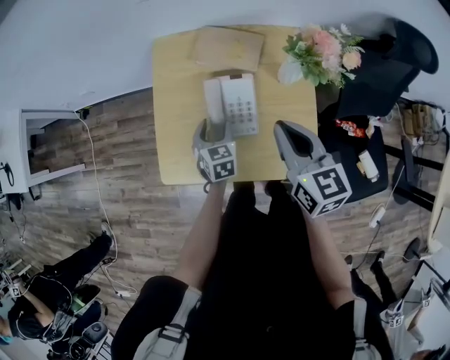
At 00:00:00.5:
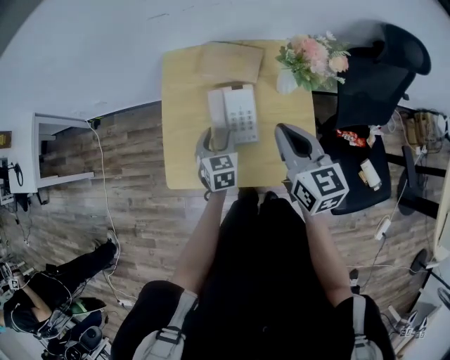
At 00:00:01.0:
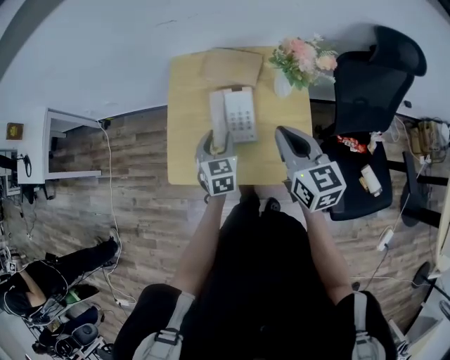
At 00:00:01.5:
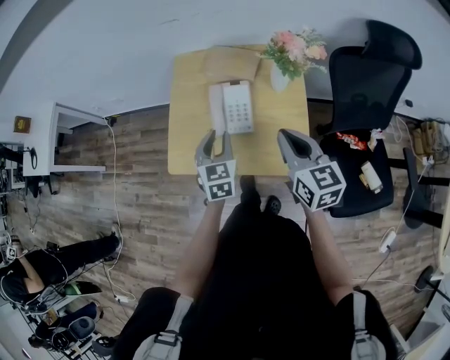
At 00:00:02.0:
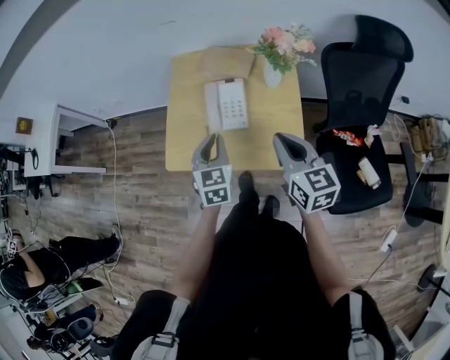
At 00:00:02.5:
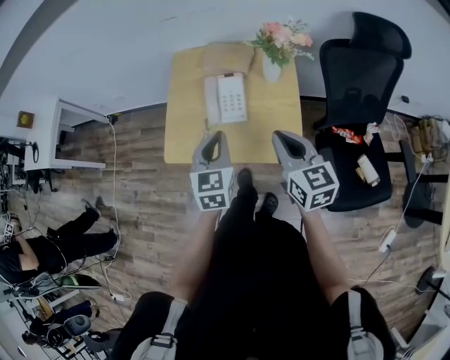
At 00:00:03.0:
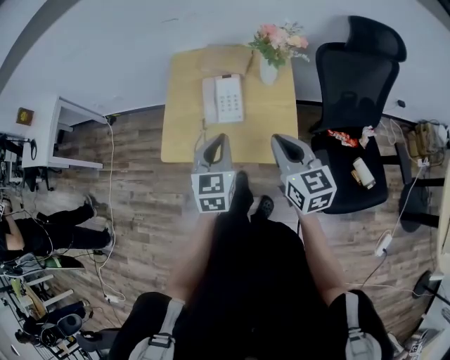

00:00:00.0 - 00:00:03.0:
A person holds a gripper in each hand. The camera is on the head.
00:00:00.0 - 00:00:01.5: The right gripper moves backward, some 10 cm. The left gripper moves upward and backward, some 20 cm, and closes its fingers.
00:00:01.5 - 00:00:03.0: The right gripper moves backward, roughly 10 cm. Meanwhile the left gripper is displaced backward and upward by about 15 cm, and closes its fingers.

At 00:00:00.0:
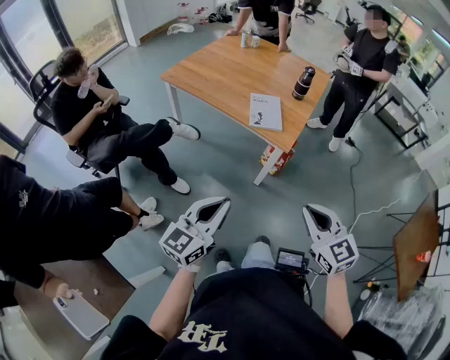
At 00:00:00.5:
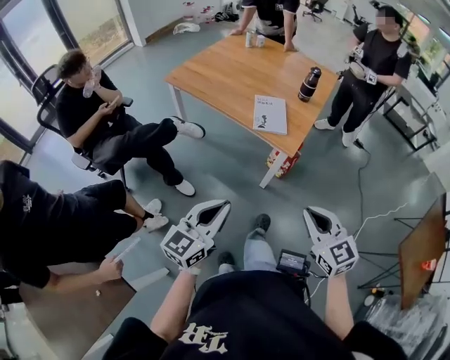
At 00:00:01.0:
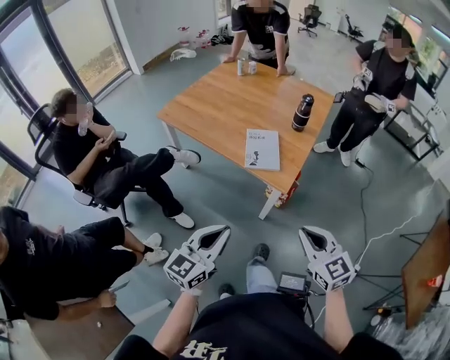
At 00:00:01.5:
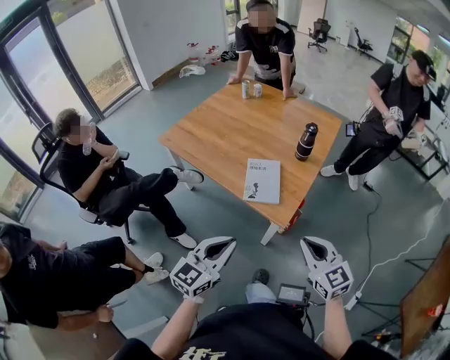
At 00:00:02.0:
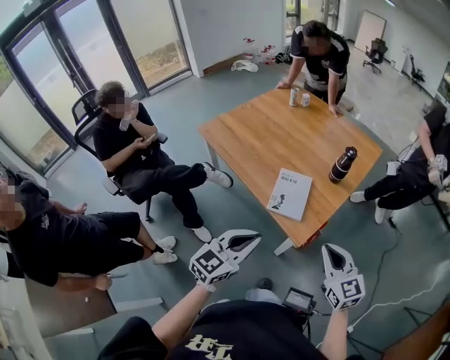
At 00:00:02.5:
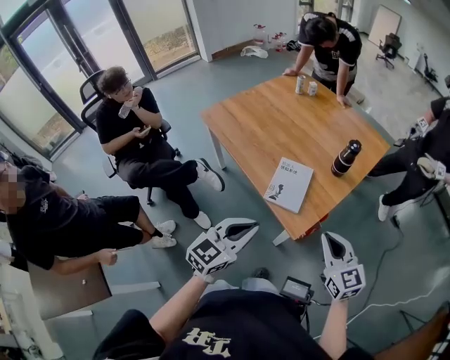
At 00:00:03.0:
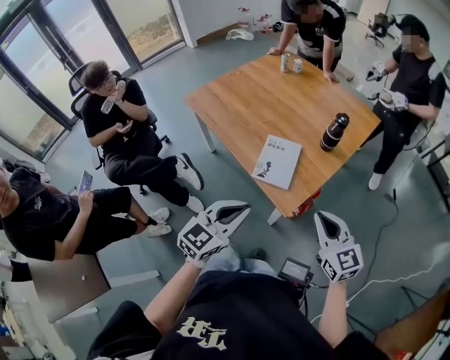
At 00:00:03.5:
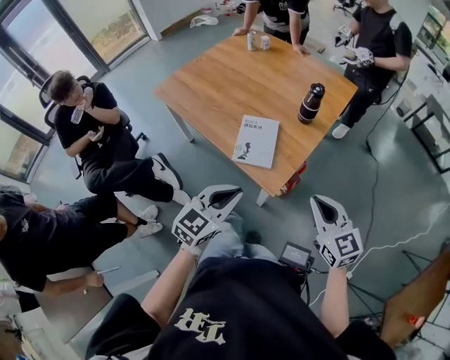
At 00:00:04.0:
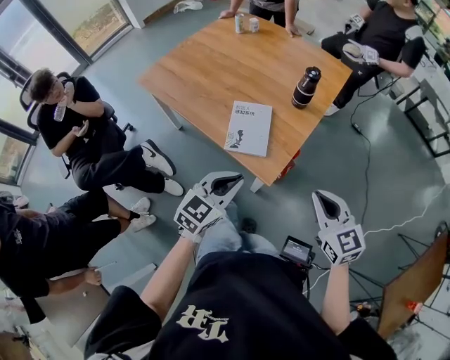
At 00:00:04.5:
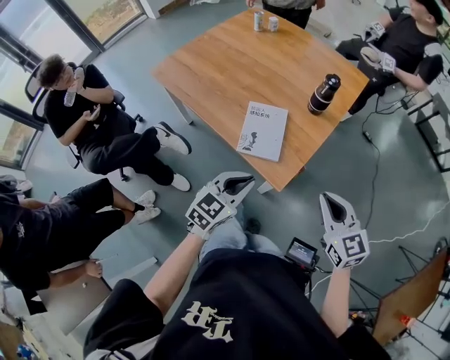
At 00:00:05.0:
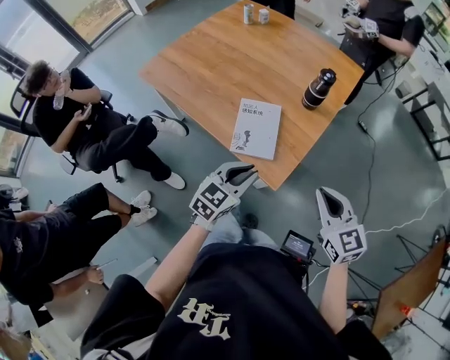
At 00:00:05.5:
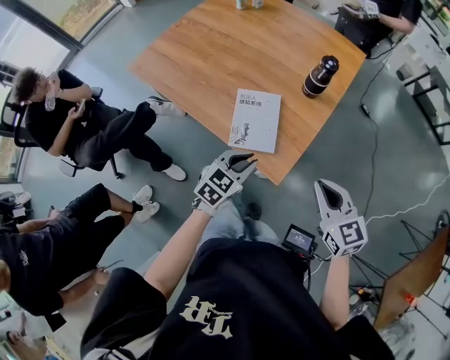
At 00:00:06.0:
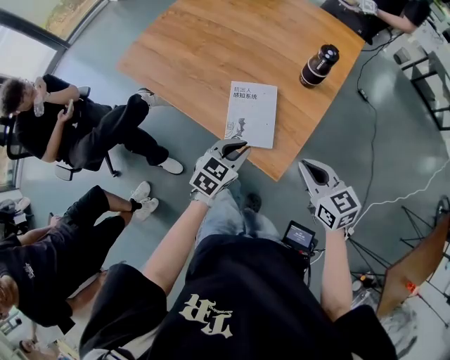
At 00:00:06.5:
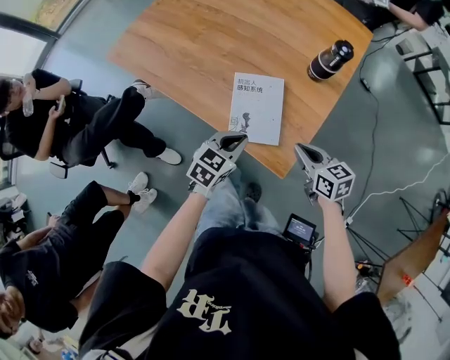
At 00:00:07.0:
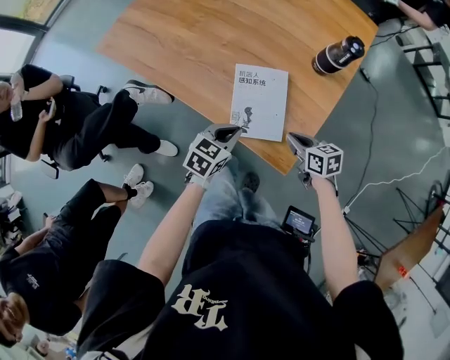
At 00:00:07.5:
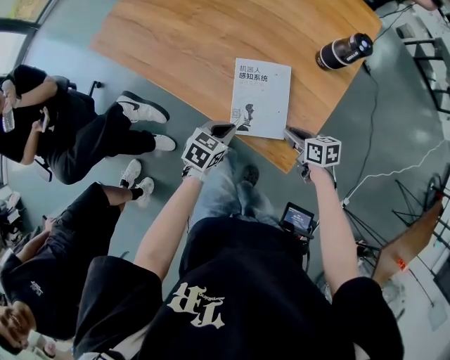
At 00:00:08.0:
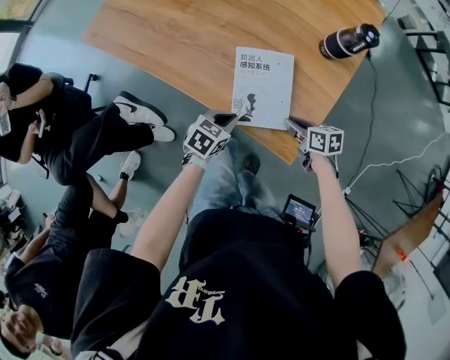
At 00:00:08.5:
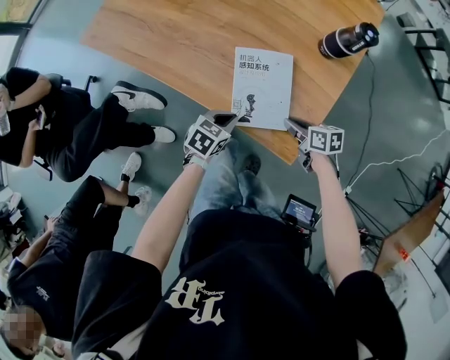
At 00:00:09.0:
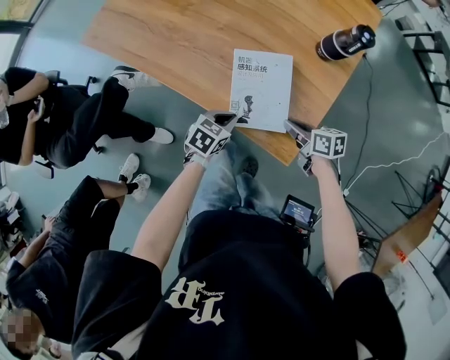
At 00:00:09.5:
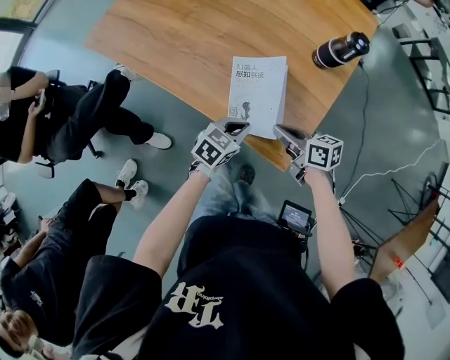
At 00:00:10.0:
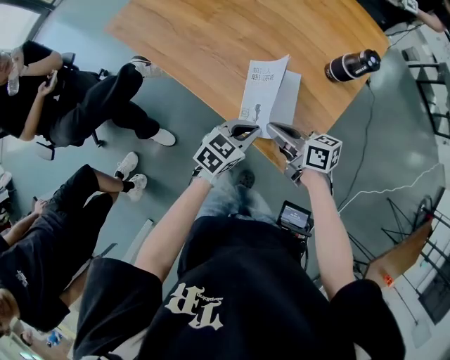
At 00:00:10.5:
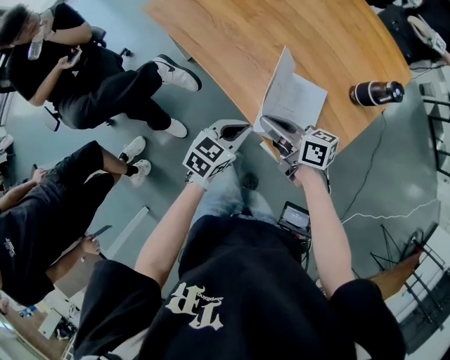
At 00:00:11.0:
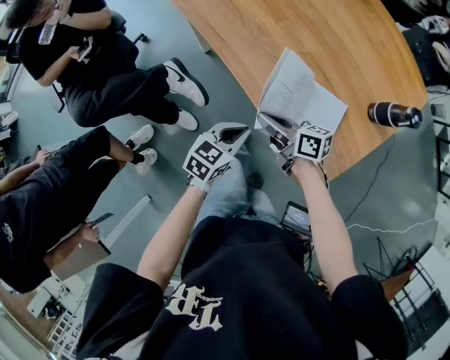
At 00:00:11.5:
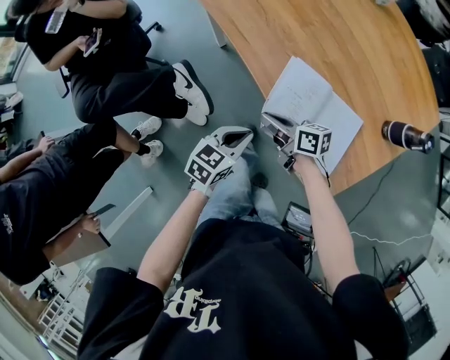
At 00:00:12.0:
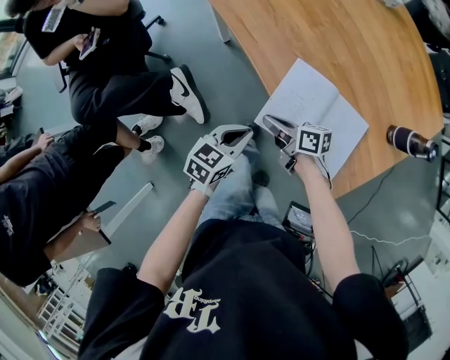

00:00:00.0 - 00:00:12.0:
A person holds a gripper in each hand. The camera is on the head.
00:00:00.0 - 00:00:02.0: The left gripper moves forward and to the right, about 30 cm. Meanwhile the right gripper goes about 35 cm forward.
00:00:02.0 - 00:00:04.0: The left gripper heads downward, to the right and forward, covering about 15 cm. The right gripper heads to the right, covering about 5 cm.
00:00:04.0 - 00:00:06.0: The left gripper is displaced forward and downward by about 20 cm, while the right gripper heads forward, downward and to the left, covering some 15 cm.
00:00:06.0 - 00:00:08.0: The right gripper is displaced downward by some 25 cm, and turns by some 40 degrees. Meanwhile the left gripper travels downward and to the left by approximately 20 cm, and turns by some 20 degrees.
00:00:08.0 - 00:00:10.0: The right gripper travels upward and to the left by some 20 cm, and rotates approximately 30 degrees; the left gripper goes some 10 cm upward.
00:00:10.0 - 00:00:12.0: The right gripper travels to the left and downward by approximately 25 cm, and swivels roughly 20 degrees. The left gripper heads to the left, covering about 20 cm, and swivels about 30 degrees.

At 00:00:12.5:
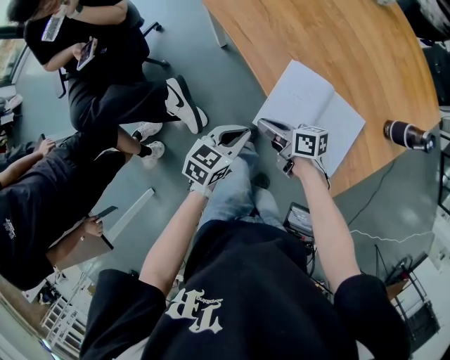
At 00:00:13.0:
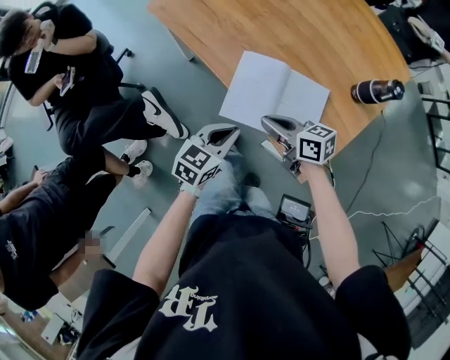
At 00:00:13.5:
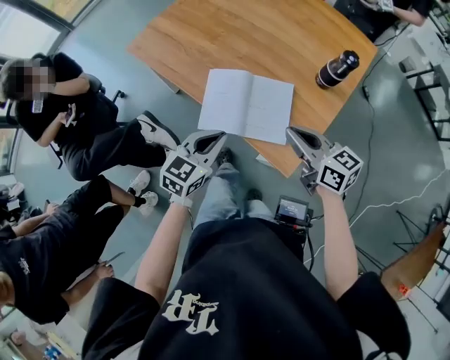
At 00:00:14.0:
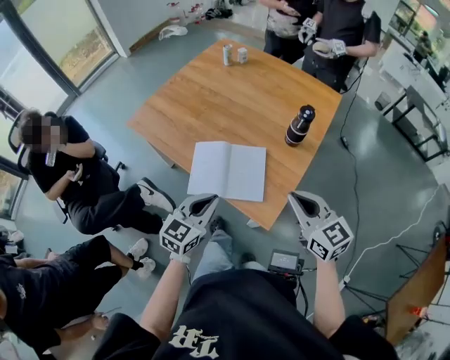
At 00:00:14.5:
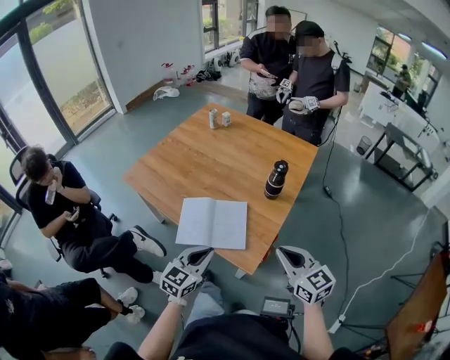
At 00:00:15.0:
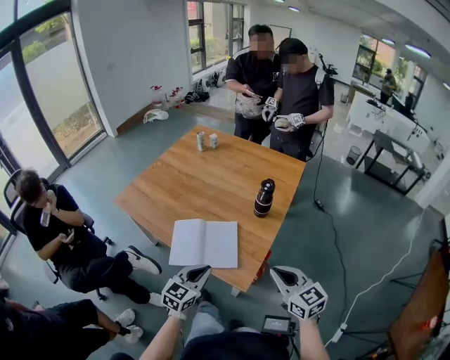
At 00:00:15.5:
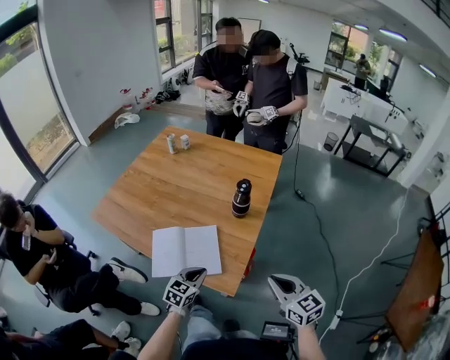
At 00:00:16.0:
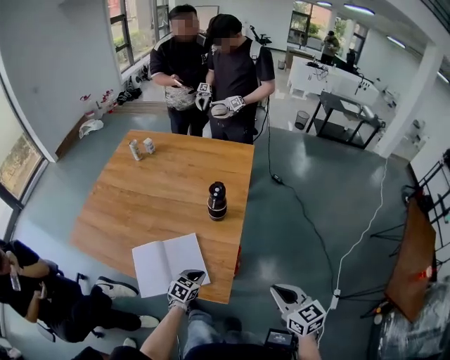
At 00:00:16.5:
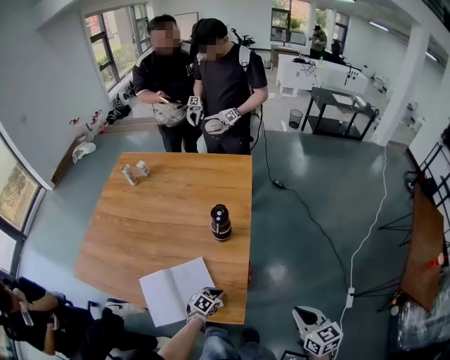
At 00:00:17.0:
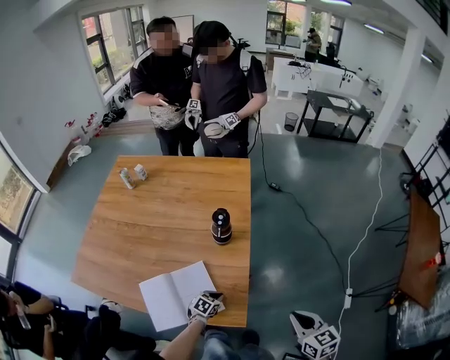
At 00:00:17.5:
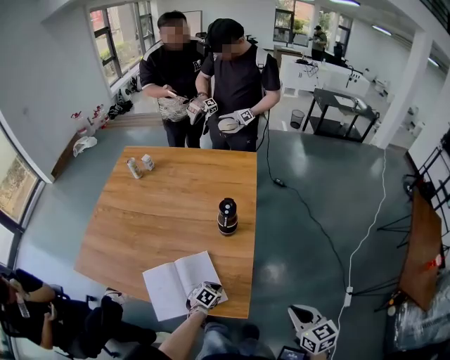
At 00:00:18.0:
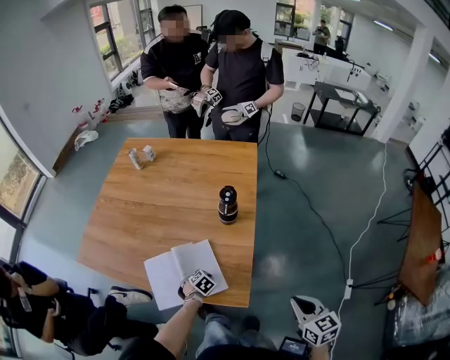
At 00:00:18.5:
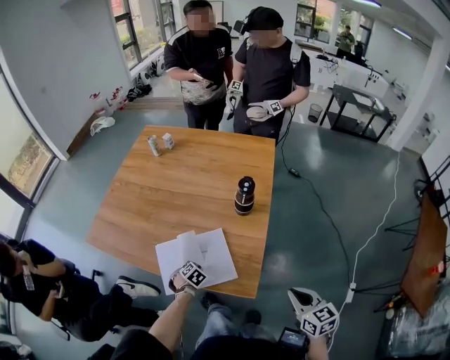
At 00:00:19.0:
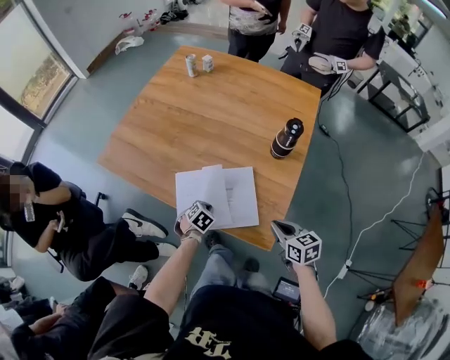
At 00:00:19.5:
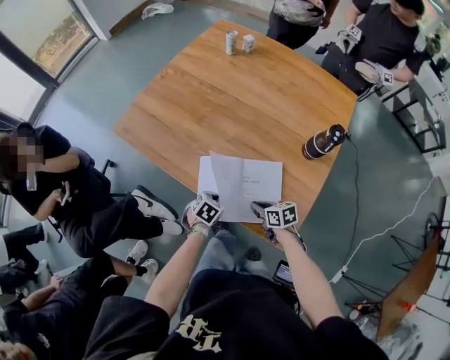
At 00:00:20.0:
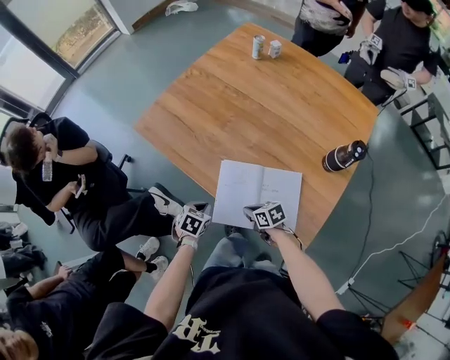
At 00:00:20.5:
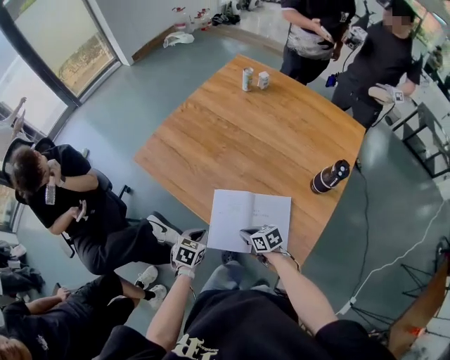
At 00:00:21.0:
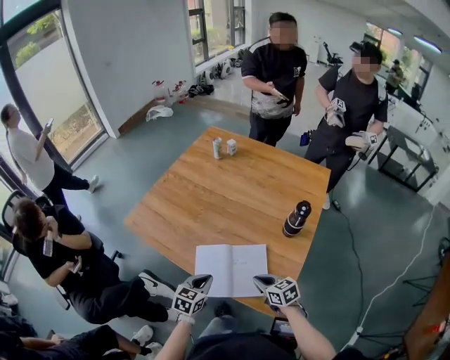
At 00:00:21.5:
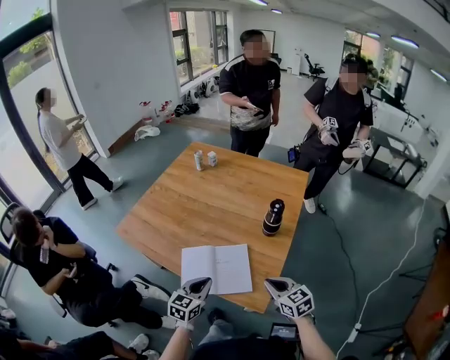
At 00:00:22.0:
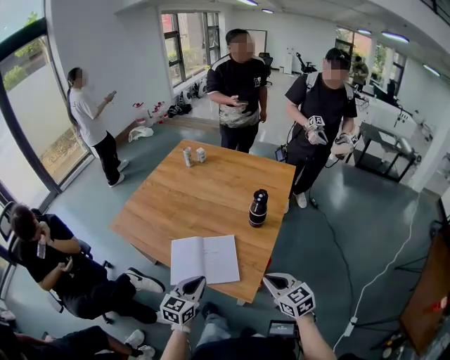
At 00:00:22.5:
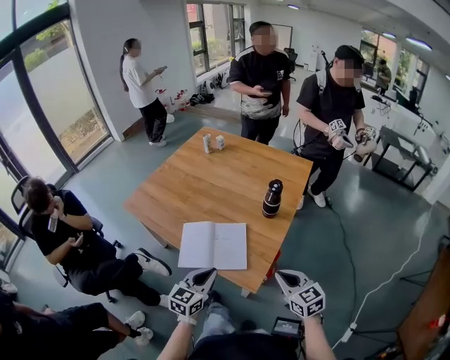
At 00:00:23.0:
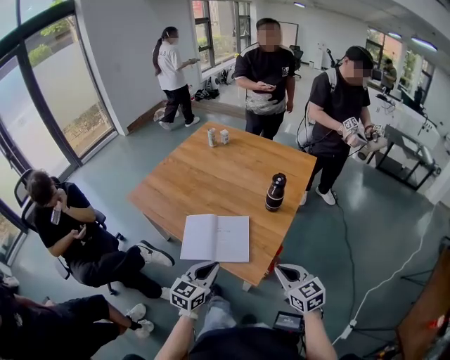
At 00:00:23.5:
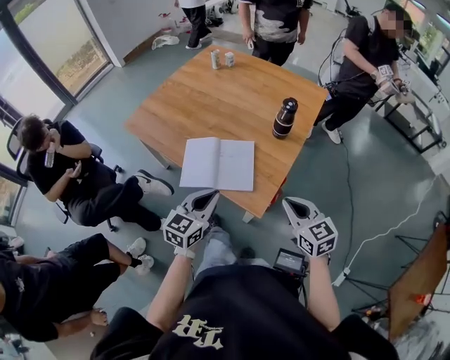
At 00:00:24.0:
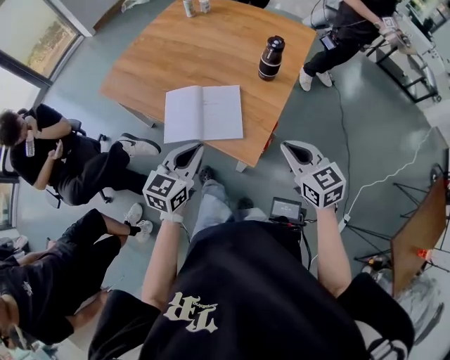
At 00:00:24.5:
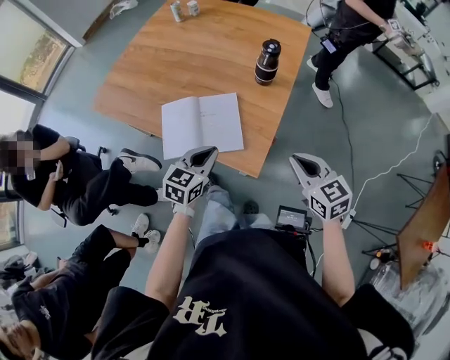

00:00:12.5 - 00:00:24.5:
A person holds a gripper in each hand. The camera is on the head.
00:00:12.5 - 00:00:14.5: The right gripper moves approximately 50 cm, and rotates about 70 degrees. Meanwhile the left gripper shifts by about 30 cm, and changes its angle by some 30 degrees.
00:00:14.5 - 00:00:16.5: The right gripper shifts by roughly 15 cm, and swivels roughly 40 degrees, while the left gripper travels downward by about 30 cm, and angles its fingers downward, by approximately 40 degrees.
00:00:16.5 - 00:00:18.5: The right gripper moves to the left, roughly 5 cm. Meanwhile the left gripper is displaced to the left by approximately 15 cm, and changes its angle by about 20 degrees.
00:00:18.5 - 00:00:20.5: The right gripper ends up roughly 50 cm from where it was, and turns by roughly 50 degrees. Meanwhile the left gripper ends up about 20 cm from where it was, and rotates around the line of its fingers by about 40 degrees, counterclockwise from behind.
00:00:20.5 - 00:00:22.5: The two grippers go some 40 cm to the right, upward and backward. The left gripper angles its fingers upward, by about 40 degrees. The right gripper rotates approximately 40 degrees.
00:00:22.5 - 00:00:24.5: The left gripper goes roughly 5 cm downward.
